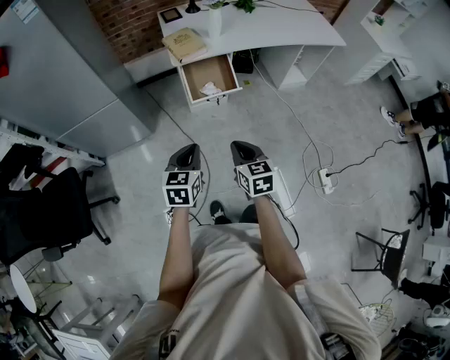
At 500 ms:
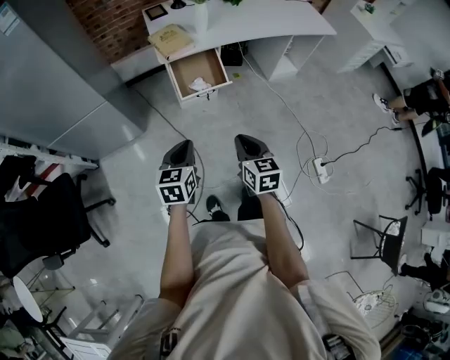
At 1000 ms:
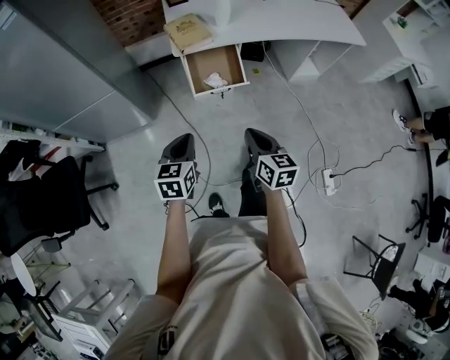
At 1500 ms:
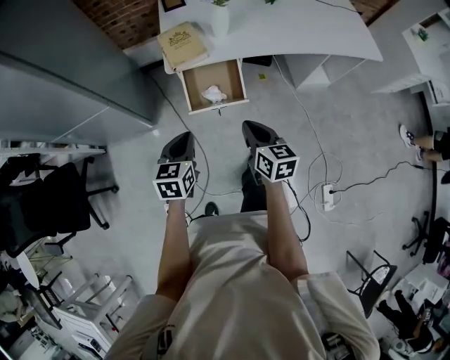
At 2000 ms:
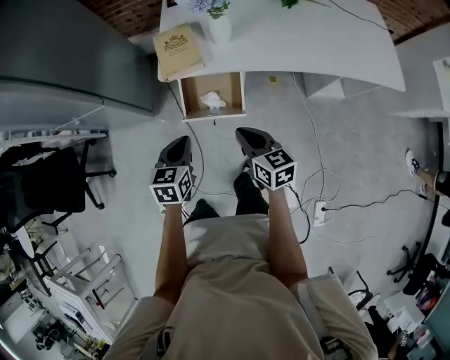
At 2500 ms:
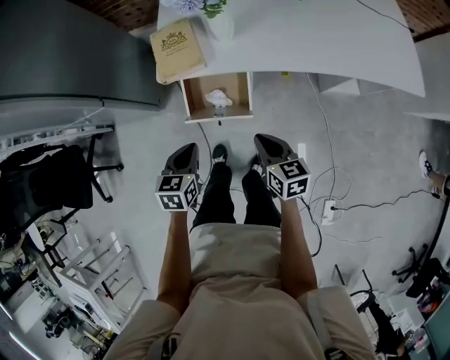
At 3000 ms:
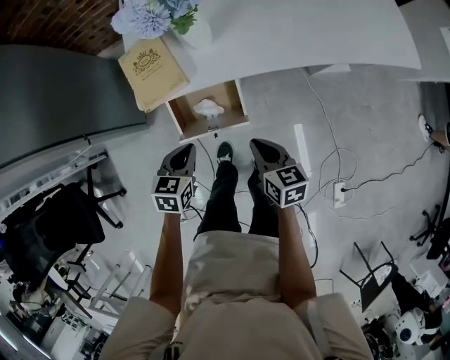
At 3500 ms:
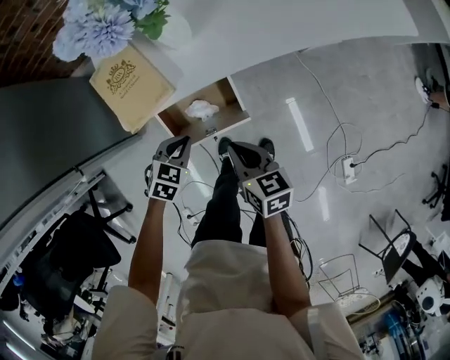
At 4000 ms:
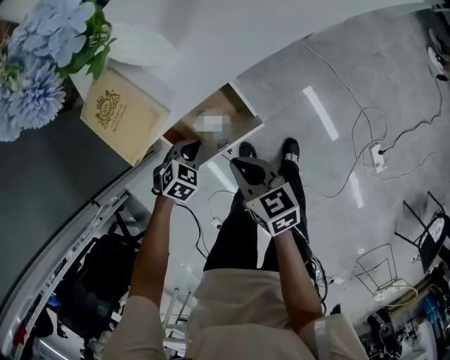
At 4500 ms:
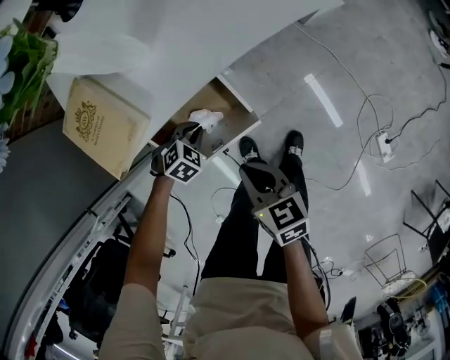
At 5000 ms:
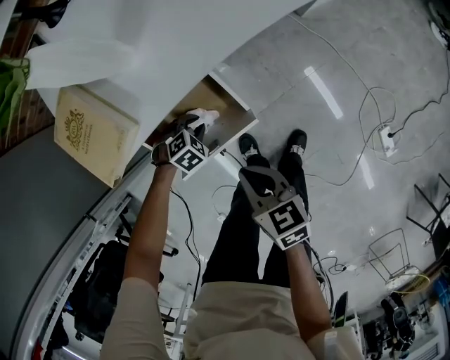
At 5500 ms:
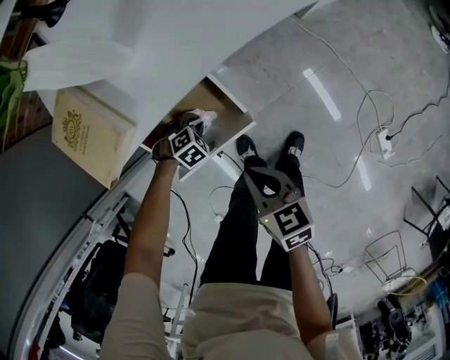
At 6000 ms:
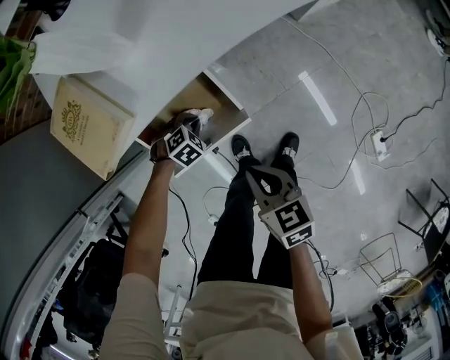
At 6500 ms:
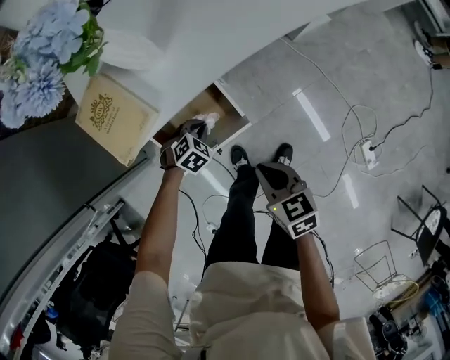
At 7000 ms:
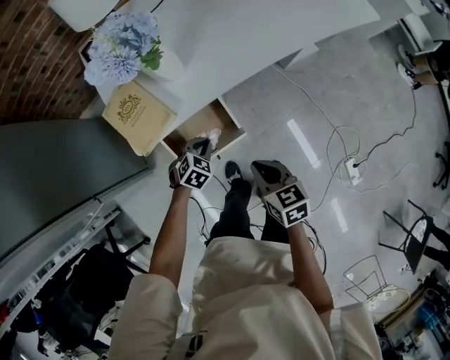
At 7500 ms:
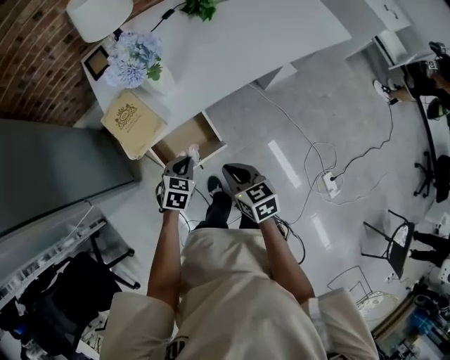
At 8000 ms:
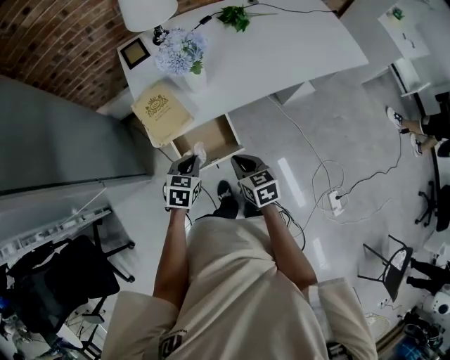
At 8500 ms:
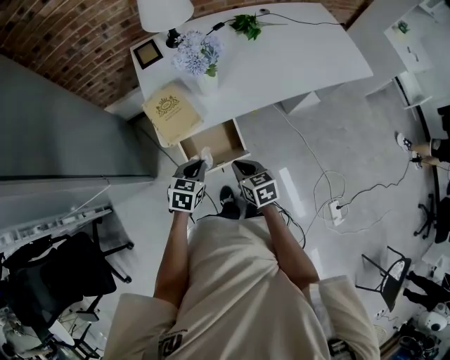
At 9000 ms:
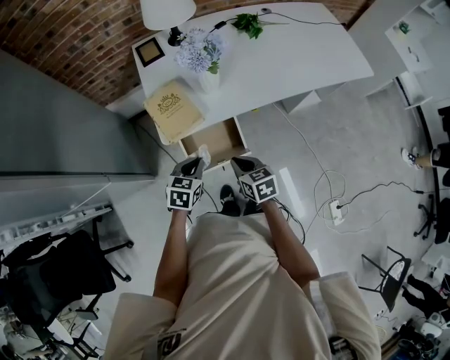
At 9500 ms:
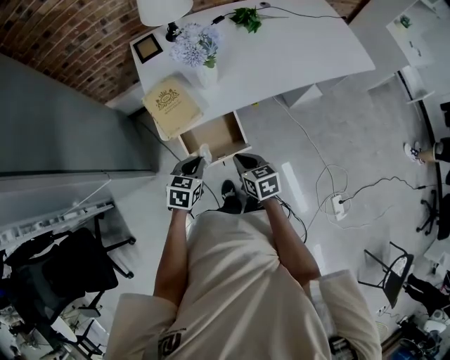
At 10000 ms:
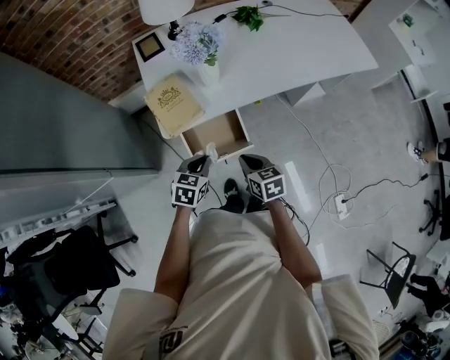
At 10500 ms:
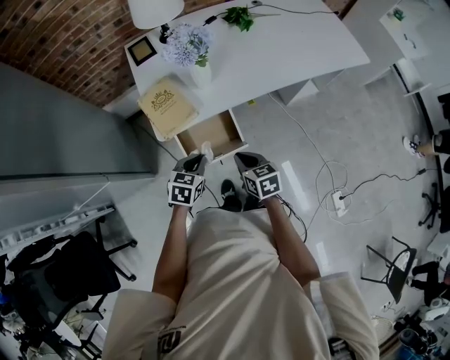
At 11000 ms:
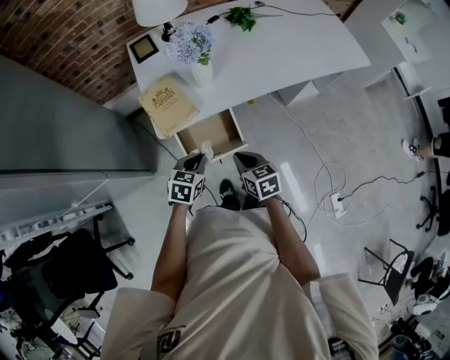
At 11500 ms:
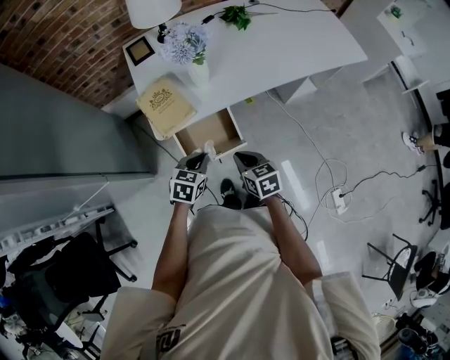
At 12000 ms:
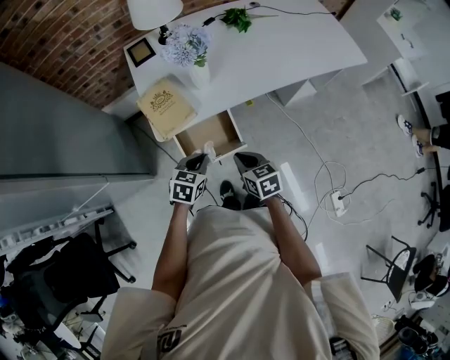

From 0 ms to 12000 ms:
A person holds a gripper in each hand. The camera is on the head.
From 0 ms to 2000 ms: The left gripper changes place by approximately 35 cm, and turns by roughly 20 degrees. Meanwhile the right gripper ends up approximately 40 cm from where it was, and swivels about 30 degrees.
From 2000 ms to 4000 ms: The left gripper moves downward, approximately 30 cm, and swivels some 70 degrees, while the right gripper shifts roughly 20 cm downward, and turns by roughly 30 degrees.
From 4000 ms to 6000 ms: The left gripper travels downward by approximately 15 cm; the right gripper moves about 10 cm.
From 6000 ms to 8000 ms: The left gripper moves upward, approximately 40 cm, and tilts its fingers some 30 degrees upward. Meanwhile the right gripper moves upward, roughly 20 cm.
From 8000 ms to 12000 ms: The grippers stay close to where they were, moving slightly.

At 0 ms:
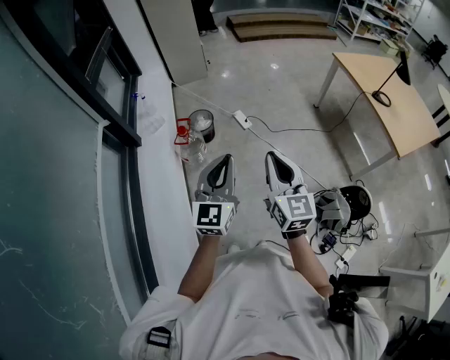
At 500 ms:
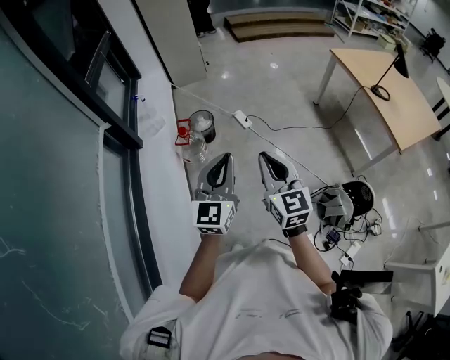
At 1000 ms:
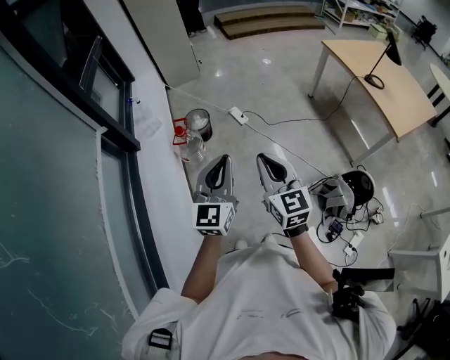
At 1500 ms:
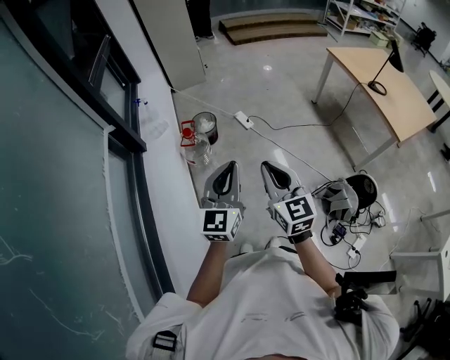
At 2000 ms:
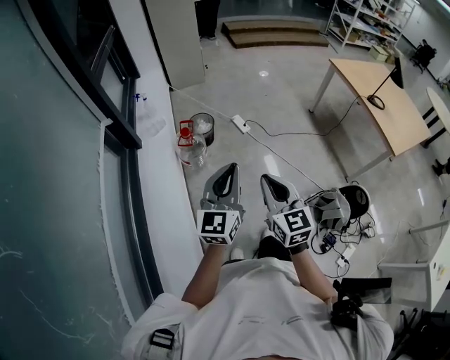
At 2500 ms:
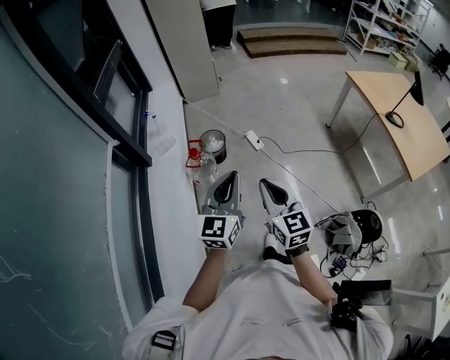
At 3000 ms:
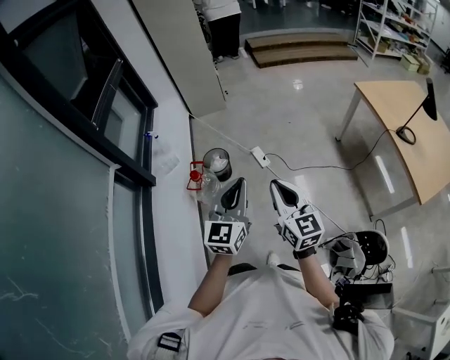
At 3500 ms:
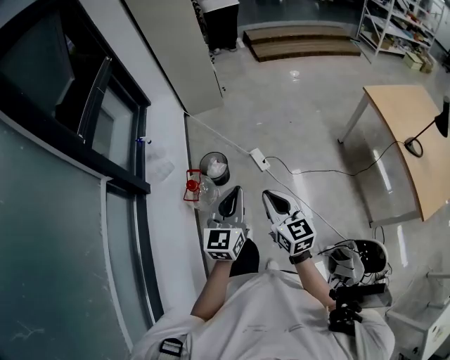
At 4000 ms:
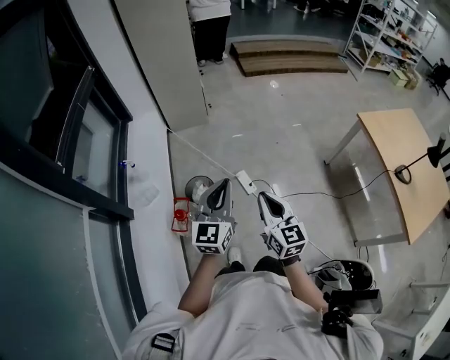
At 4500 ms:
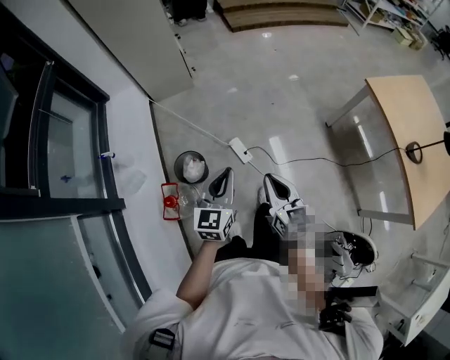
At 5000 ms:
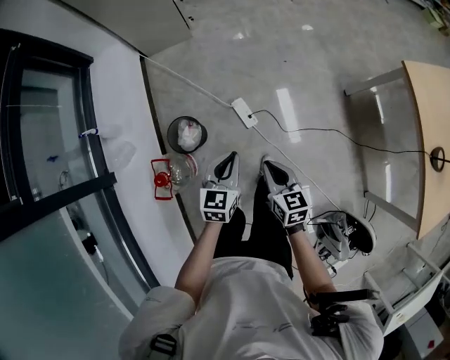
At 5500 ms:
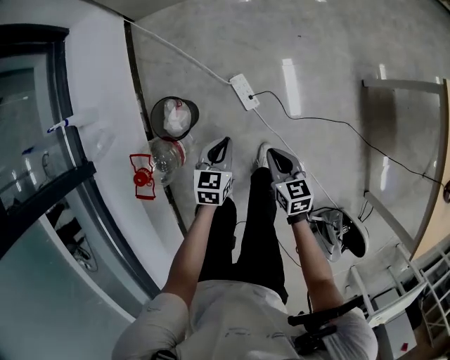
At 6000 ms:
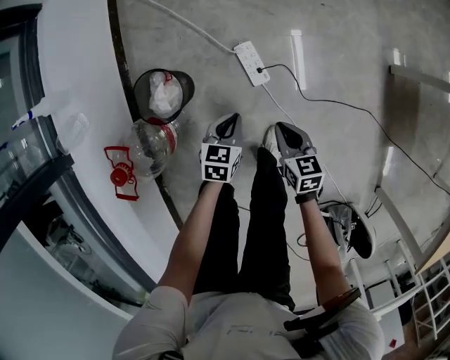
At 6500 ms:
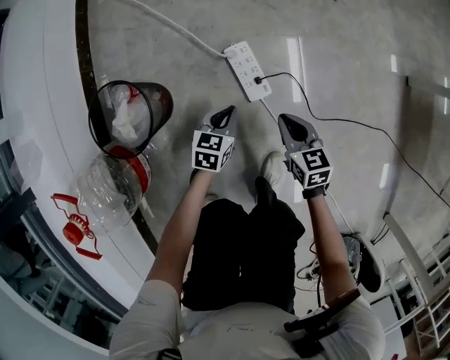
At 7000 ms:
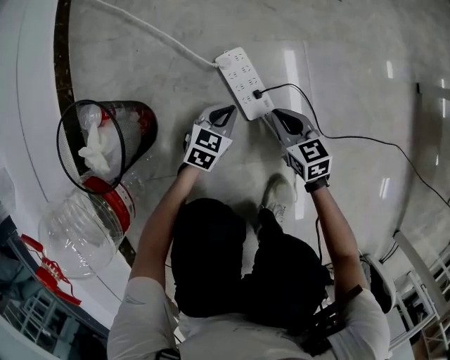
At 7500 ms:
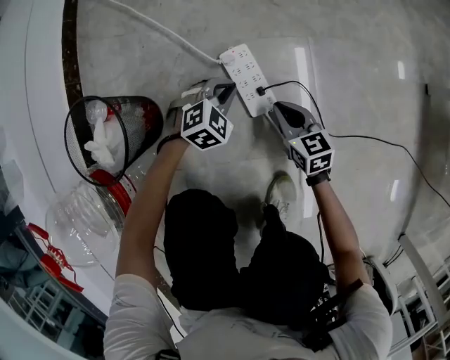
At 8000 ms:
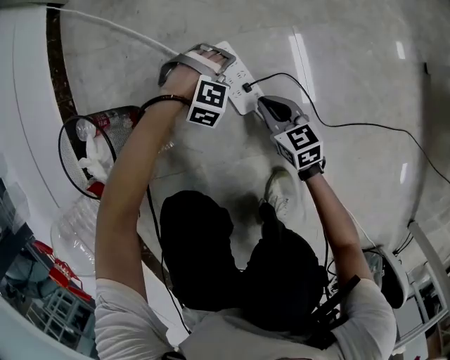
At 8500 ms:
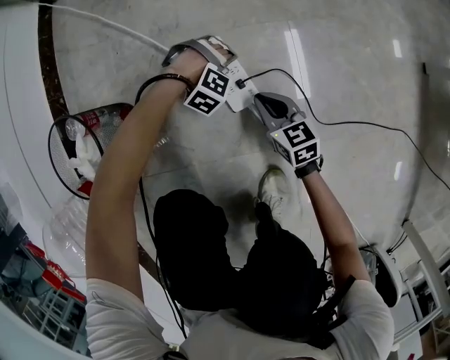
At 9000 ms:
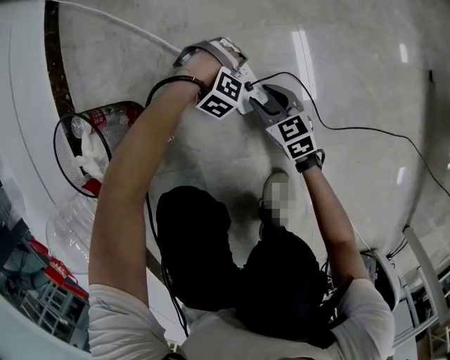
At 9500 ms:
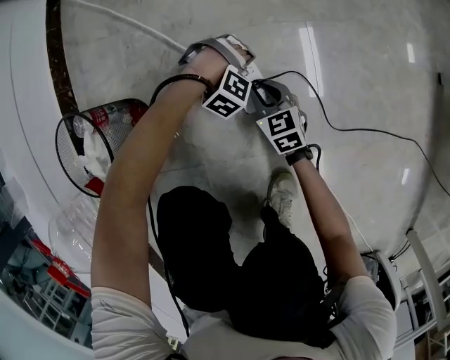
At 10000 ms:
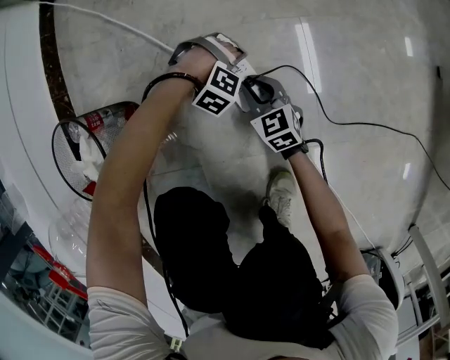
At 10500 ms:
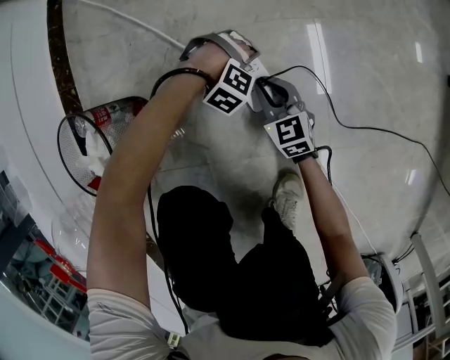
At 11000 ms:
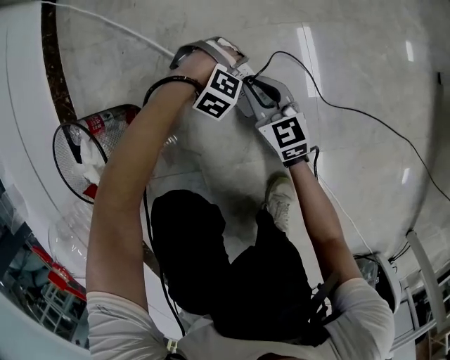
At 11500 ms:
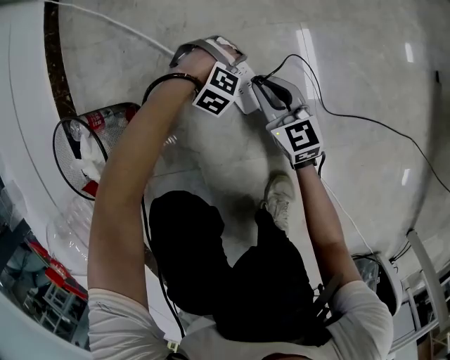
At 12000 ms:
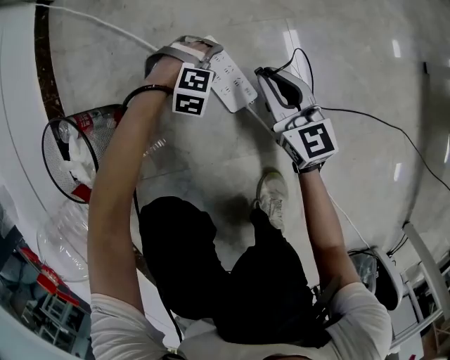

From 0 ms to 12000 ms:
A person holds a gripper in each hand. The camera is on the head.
From 0 ms to 2000 ms: The left gripper goes approximately 5 cm to the left. The right gripper heads to the left and backward, covering approximately 10 cm.
From 2000 ms to 4000 ms: The two grippers travel together, forward, some 50 cm.
From 4000 ms to 6000 ms: The grippers both shift downward by some 60 cm. The left gripper tilts its fingers approximately 50 degrees downward, while the right gripper points its fingers approximately 40 degrees further downward.
From 6000 ms to 8000 ms: The two grippers go approximately 35 cm downward. The left gripper rolls clockwise, seen from behind, by roughly 110 degrees, and opens its fingers.
From 8000 ms to 10000 ms: The right gripper ends up about 5 cm from where it was, and opens, then closes once more.
From 10000 ms to 12000 ms: The right gripper shifts approximately 15 cm upward, and changes its angle by some 30 degrees.

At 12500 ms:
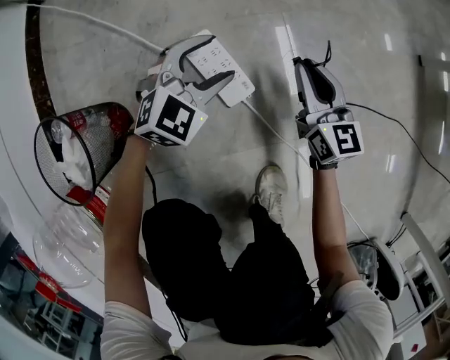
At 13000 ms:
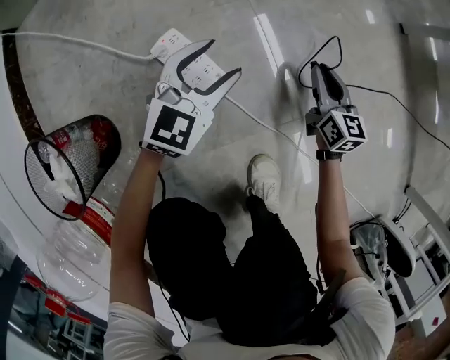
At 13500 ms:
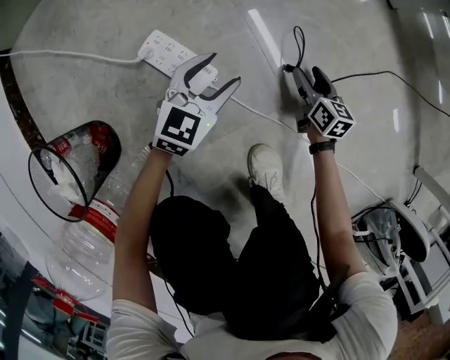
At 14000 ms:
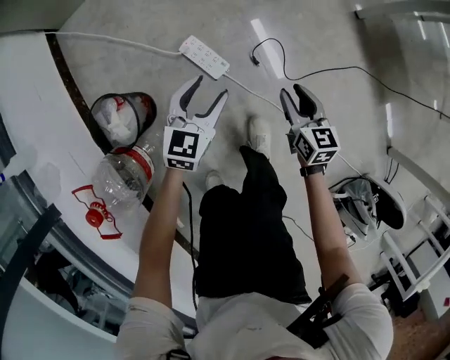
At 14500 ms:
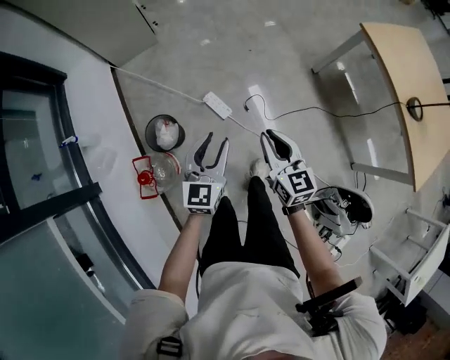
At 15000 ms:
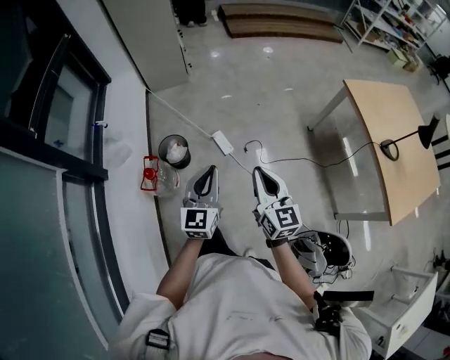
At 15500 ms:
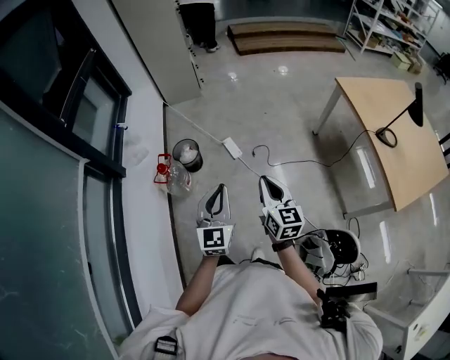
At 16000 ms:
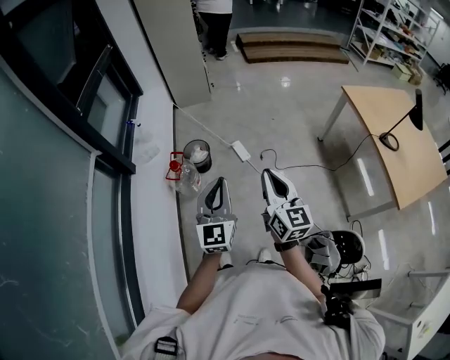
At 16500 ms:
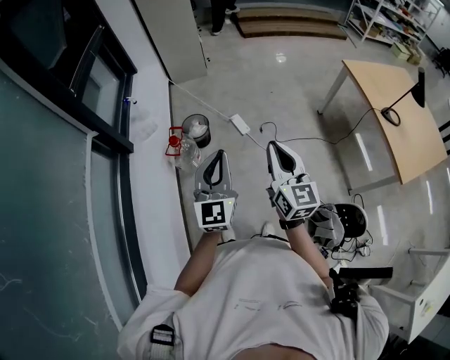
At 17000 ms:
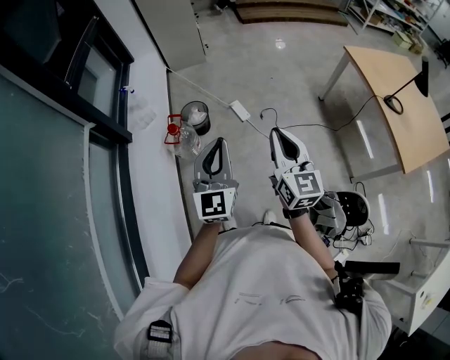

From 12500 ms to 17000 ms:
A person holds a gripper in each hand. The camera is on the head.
From 12500 ms to 14500 ms: The left gripper shifts some 70 cm upward, rotates about 40 degrees, and closes its fingers. The right gripper shifts about 70 cm upward and backward, and opens, then closes again.
From 14500 ms to 17000 ms: The grippers both shift backward and upward by some 50 cm. The left gripper swivels approximately 30 degrees, and closes up.
